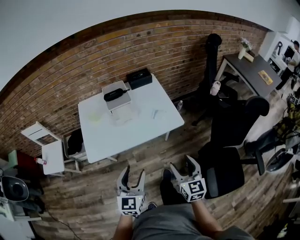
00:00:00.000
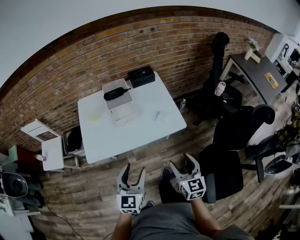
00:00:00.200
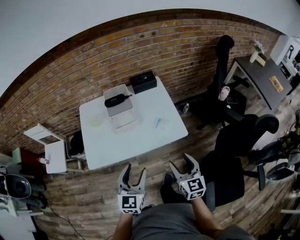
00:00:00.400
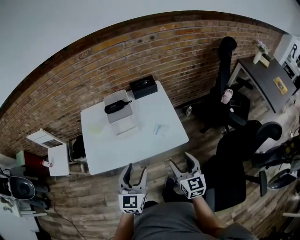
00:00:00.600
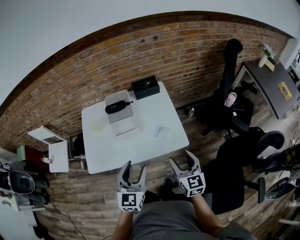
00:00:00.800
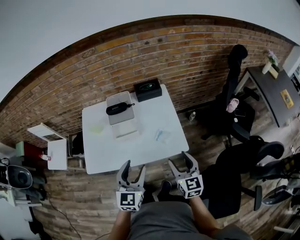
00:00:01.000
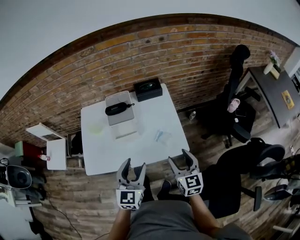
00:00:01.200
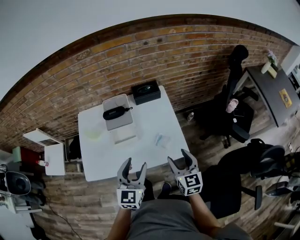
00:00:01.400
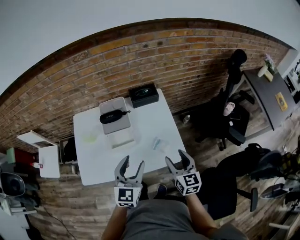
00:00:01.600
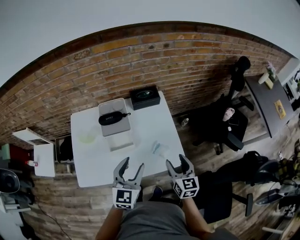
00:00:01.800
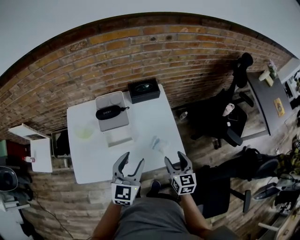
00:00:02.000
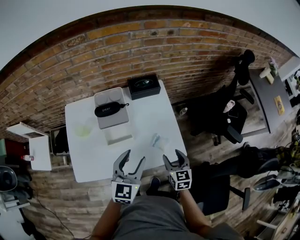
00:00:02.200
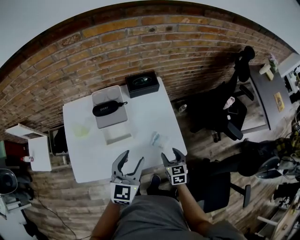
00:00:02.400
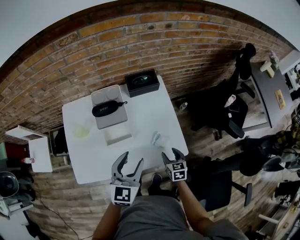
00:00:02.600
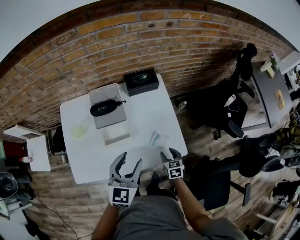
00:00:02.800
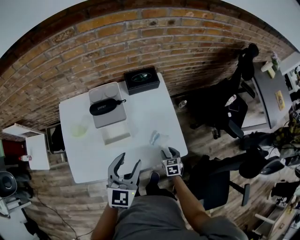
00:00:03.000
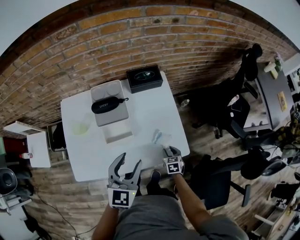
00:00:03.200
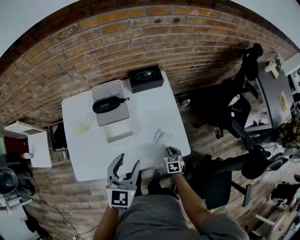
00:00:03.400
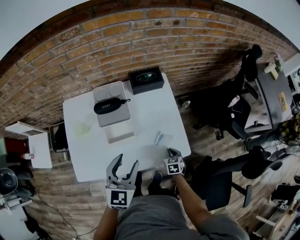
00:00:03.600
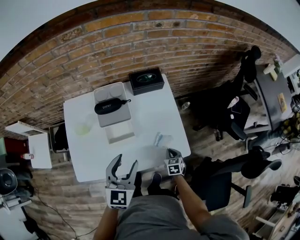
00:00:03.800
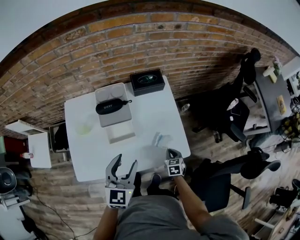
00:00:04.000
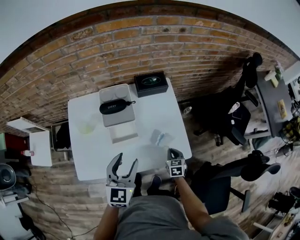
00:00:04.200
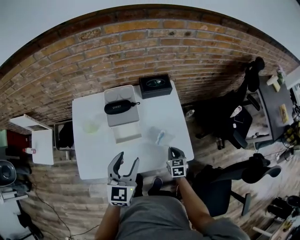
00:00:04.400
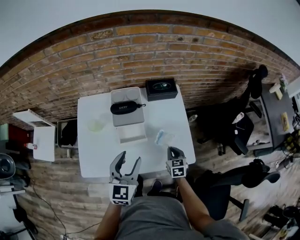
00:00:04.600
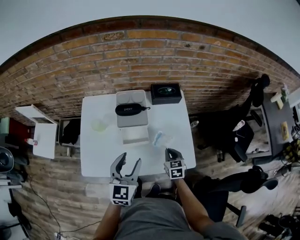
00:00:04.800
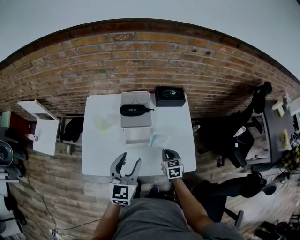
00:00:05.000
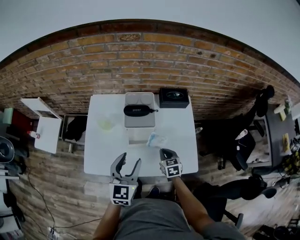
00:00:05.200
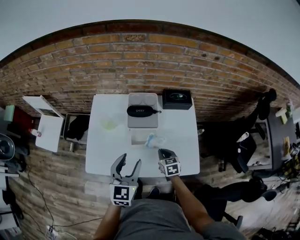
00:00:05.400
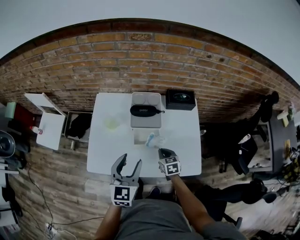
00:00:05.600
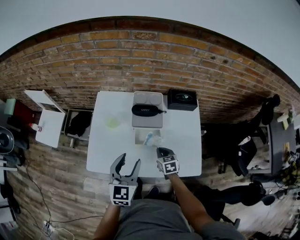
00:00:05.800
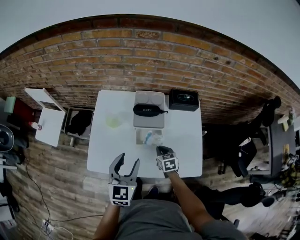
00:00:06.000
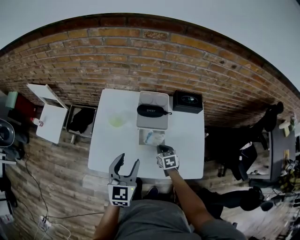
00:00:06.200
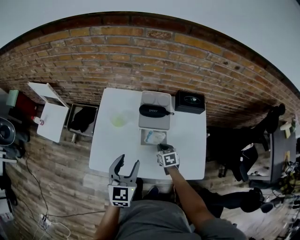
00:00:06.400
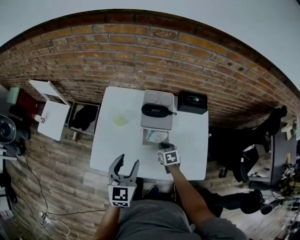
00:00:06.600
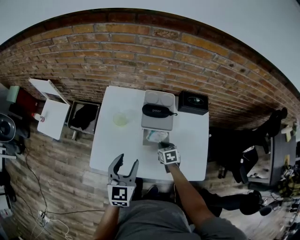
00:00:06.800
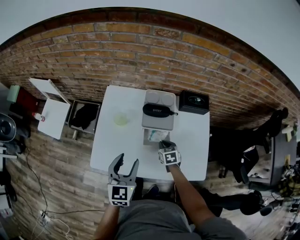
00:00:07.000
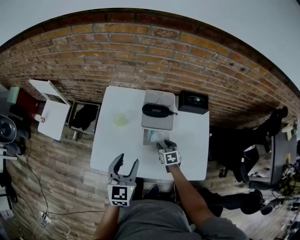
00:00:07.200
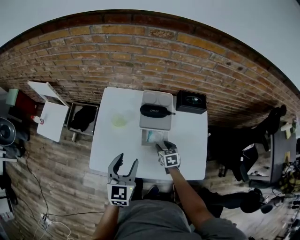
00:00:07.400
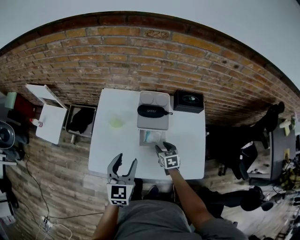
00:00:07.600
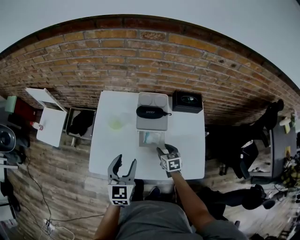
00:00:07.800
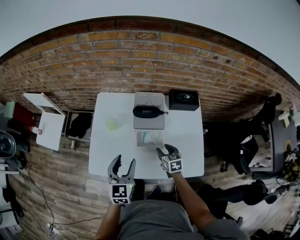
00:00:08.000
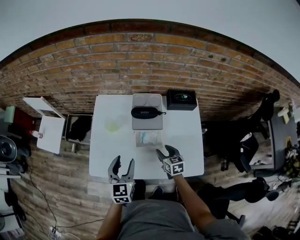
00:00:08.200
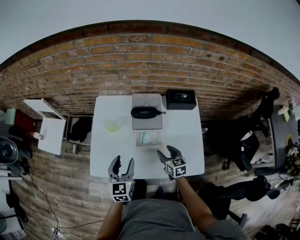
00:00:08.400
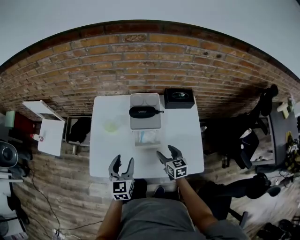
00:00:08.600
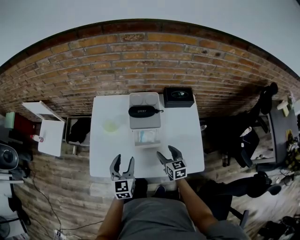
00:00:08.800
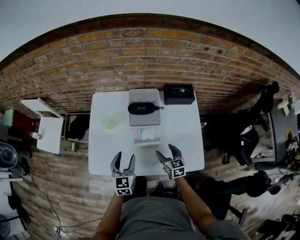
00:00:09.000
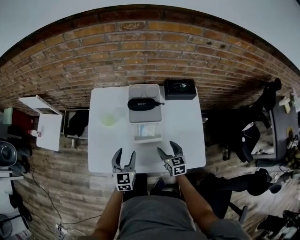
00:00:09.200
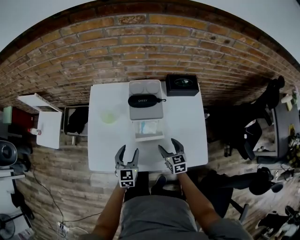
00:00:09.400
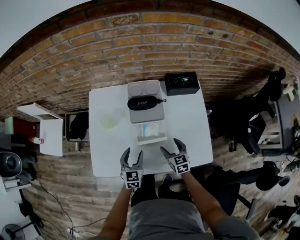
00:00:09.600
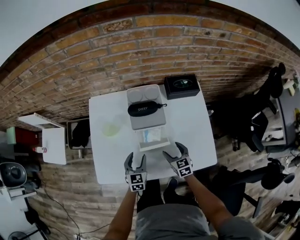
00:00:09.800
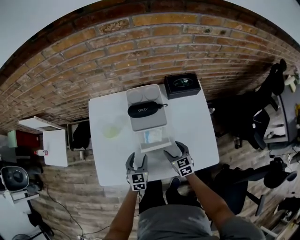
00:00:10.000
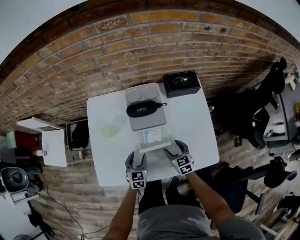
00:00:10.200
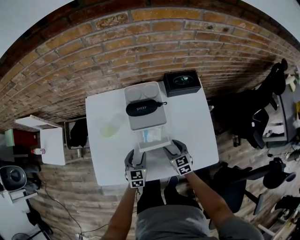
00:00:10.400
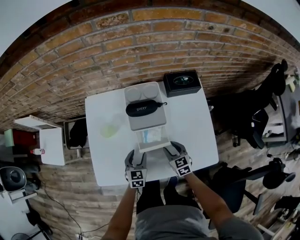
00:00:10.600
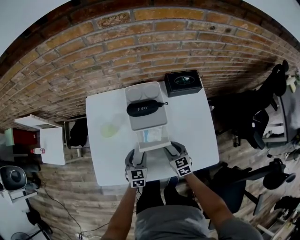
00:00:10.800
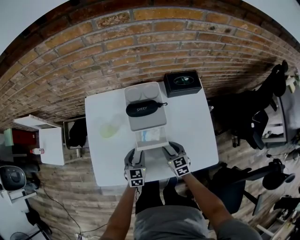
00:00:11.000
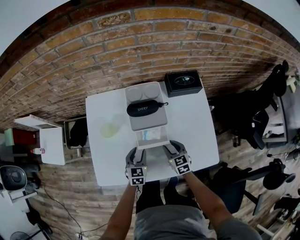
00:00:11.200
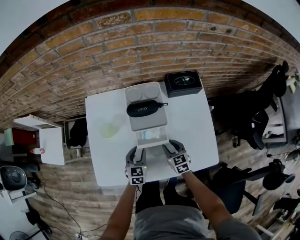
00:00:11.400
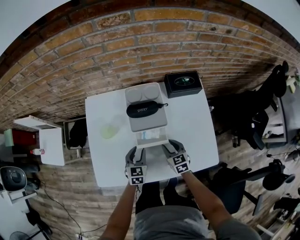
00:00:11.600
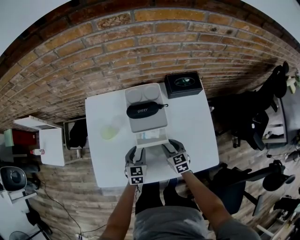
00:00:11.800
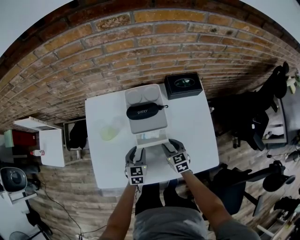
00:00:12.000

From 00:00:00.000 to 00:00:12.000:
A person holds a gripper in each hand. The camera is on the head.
From 00:00:00.000 to 00:00:01.600: The grippers both shift forward by roughly 30 cm.
From 00:00:01.600 to 00:00:03.000: The left gripper moves roughly 5 cm. Meanwhile the right gripper moves downward, approximately 25 cm, and tilts its fingers approximately 30 degrees downward.
From 00:00:03.000 to 00:00:04.400: The right gripper shifts some 5 cm upward, and closes. The left gripper moves to the left, approximately 5 cm.
From 00:00:04.400 to 00:00:06.000: The left gripper goes about 10 cm to the left, while the right gripper goes some 20 cm to the left and forward, and rotates some 20 degrees.
From 00:00:06.000 to 00:00:07.600: The right gripper opens its fingers.
From 00:00:07.600 to 00:00:09.000: The right gripper shifts about 5 cm backward, and opens up. The left gripper moves downward, about 10 cm.
From 00:00:09.000 to 00:00:10.400: The right gripper travels downward by about 5 cm. The left gripper is displaced downward by approximately 15 cm.
From 00:00:10.400 to 00:00:12.000: The left gripper closes.

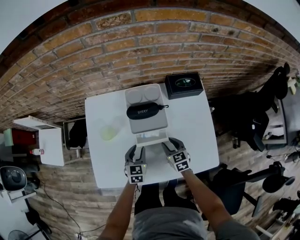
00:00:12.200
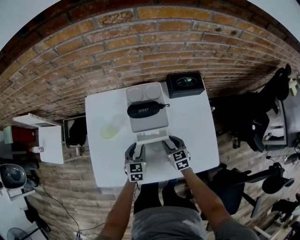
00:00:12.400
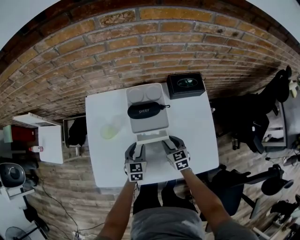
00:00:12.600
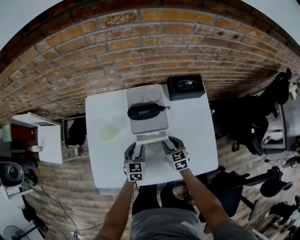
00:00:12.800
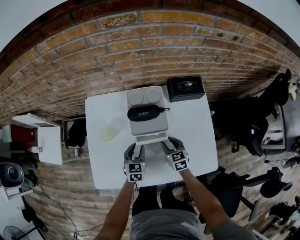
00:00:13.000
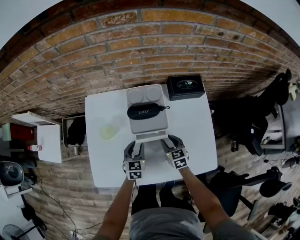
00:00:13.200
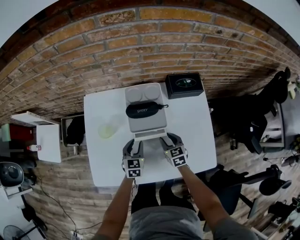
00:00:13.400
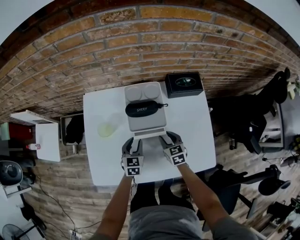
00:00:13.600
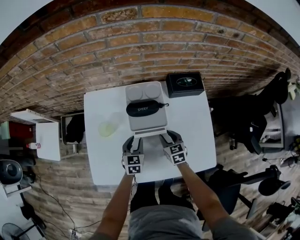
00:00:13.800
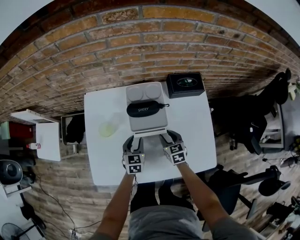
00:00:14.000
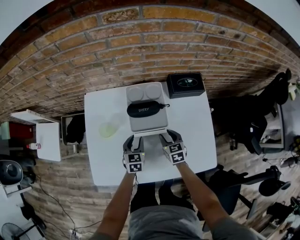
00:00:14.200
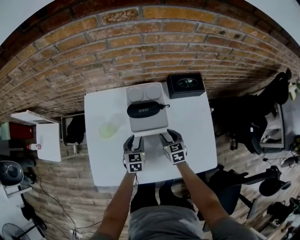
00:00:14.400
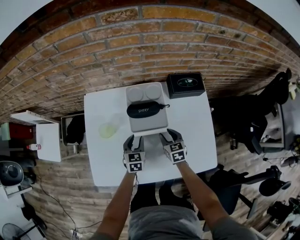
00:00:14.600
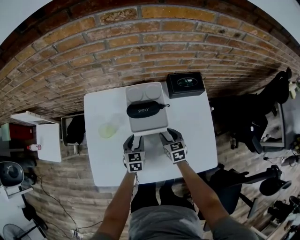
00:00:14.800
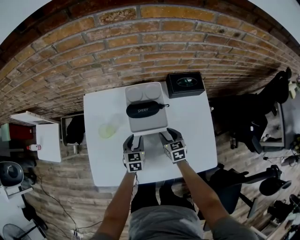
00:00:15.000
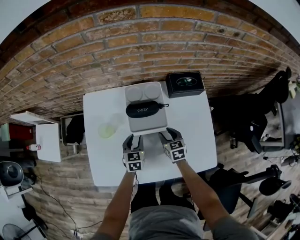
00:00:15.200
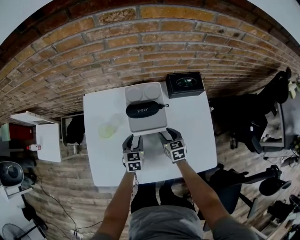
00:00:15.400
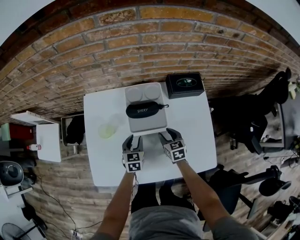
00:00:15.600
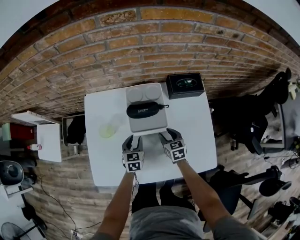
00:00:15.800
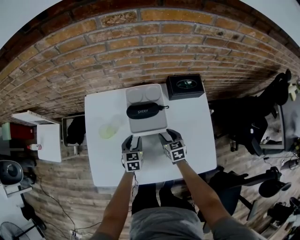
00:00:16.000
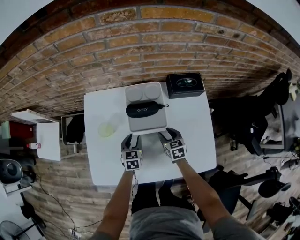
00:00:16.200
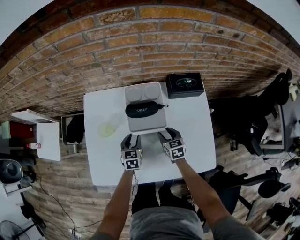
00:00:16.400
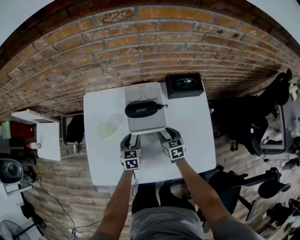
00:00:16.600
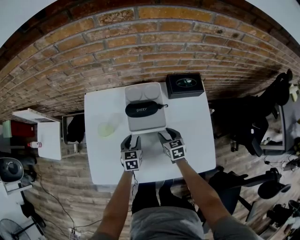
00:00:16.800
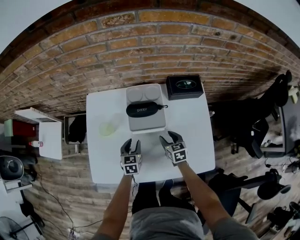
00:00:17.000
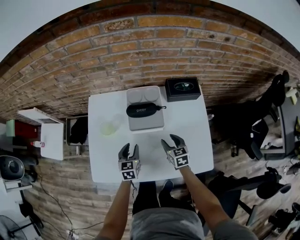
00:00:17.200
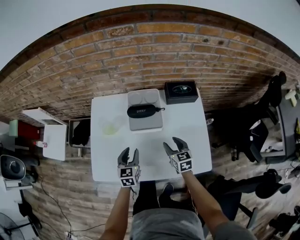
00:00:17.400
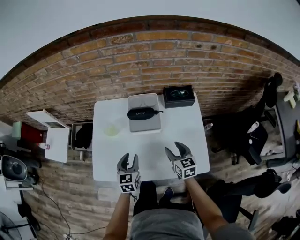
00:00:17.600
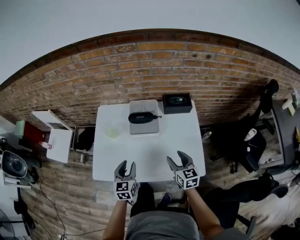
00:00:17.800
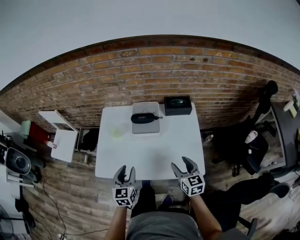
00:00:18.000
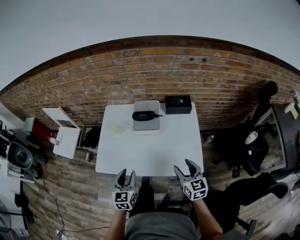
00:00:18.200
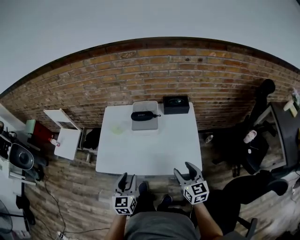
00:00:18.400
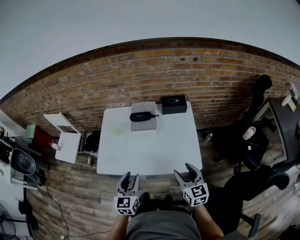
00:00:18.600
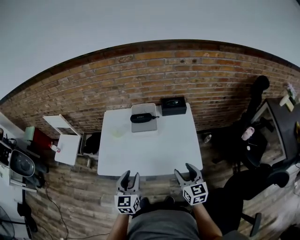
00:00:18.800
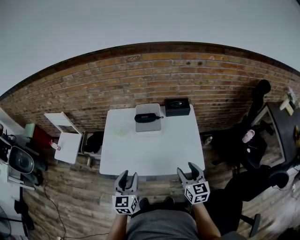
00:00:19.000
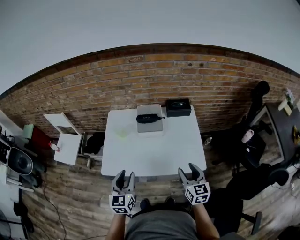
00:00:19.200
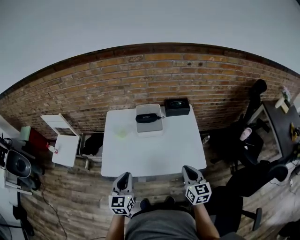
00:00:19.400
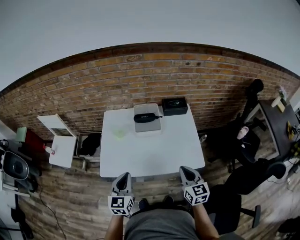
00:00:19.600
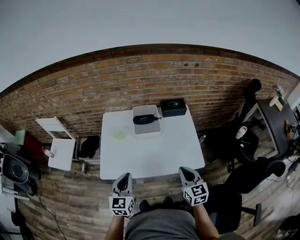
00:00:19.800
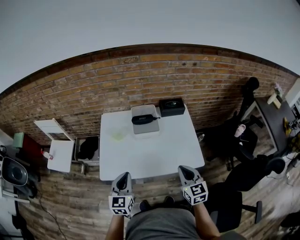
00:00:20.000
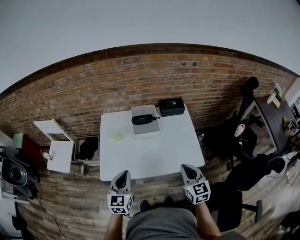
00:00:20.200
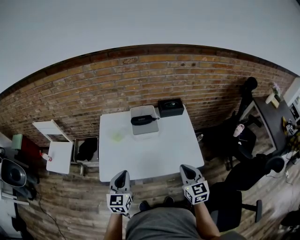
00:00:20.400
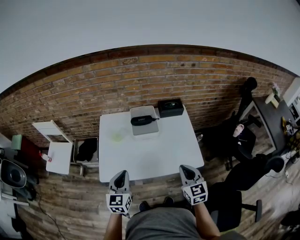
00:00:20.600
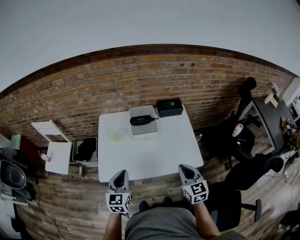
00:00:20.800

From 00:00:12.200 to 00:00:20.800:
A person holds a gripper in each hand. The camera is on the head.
From 00:00:12.200 to 00:00:16.600: The grippers make only small movements.
From 00:00:16.600 to 00:00:18.000: The left gripper heads backward and upward, covering some 30 cm, and rotates approximately 20 degrees, while the right gripper shifts approximately 30 cm upward and backward, and rotates about 20 degrees.
From 00:00:18.000 to 00:00:19.400: The grippers both shift backward and upward by some 10 cm. The left gripper closes up; the right gripper closes up.
From 00:00:19.400 to 00:00:20.800: The grippers make only small movements.

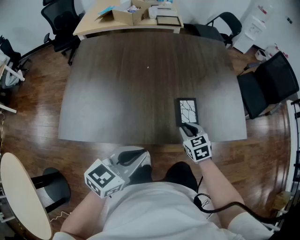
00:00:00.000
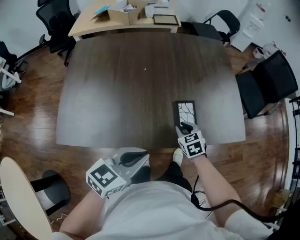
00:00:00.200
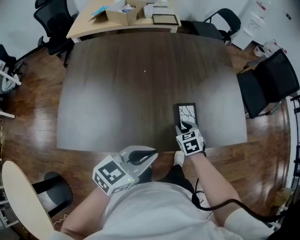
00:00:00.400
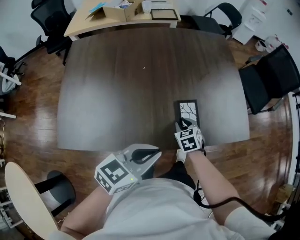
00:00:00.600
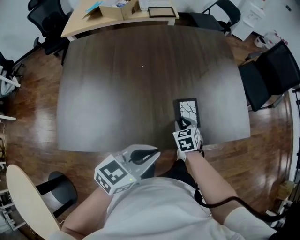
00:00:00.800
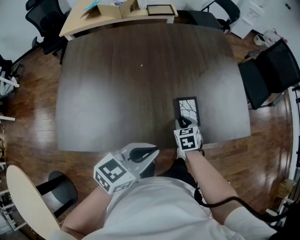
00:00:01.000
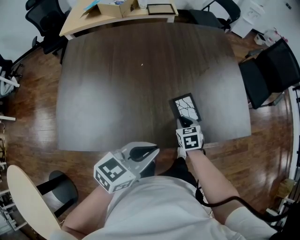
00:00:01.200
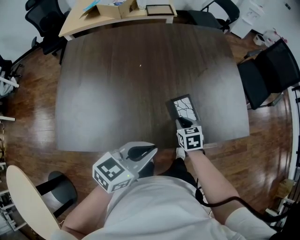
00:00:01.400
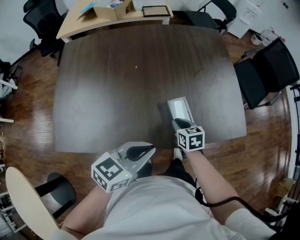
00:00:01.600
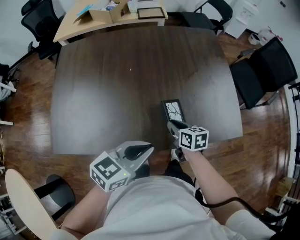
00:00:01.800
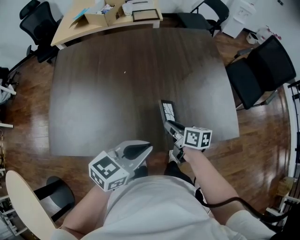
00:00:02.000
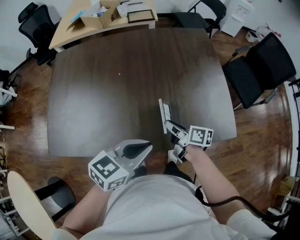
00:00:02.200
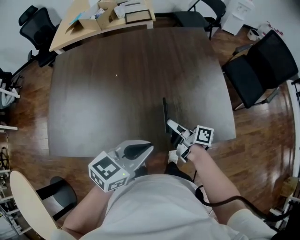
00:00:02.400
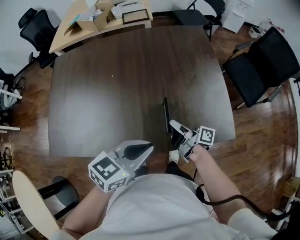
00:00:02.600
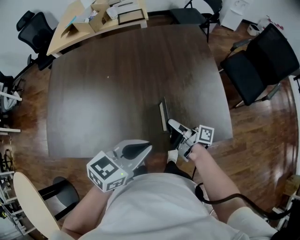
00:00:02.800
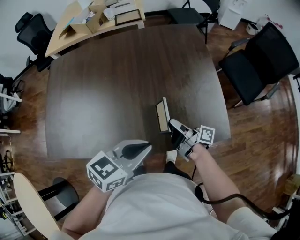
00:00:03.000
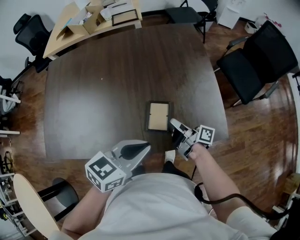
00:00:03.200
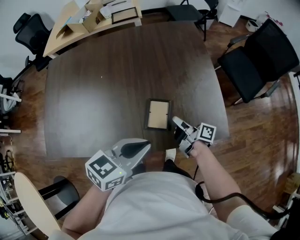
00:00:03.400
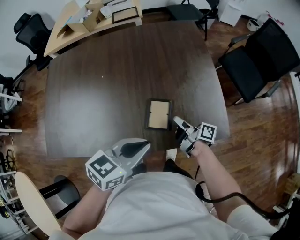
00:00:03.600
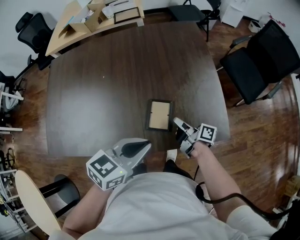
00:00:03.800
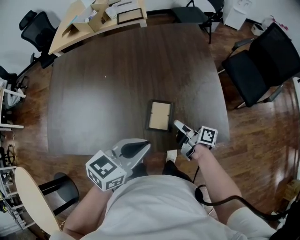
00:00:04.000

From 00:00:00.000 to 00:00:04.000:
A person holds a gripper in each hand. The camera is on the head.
From 00:00:00.000 to 00:00:01.400: The right gripper is displaced downward by approximately 5 cm, while the left gripper moves forward, some 5 cm.
From 00:00:01.400 to 00:00:02.600: The left gripper is displaced to the right by roughly 10 cm. Meanwhile the right gripper moves to the right and upward, about 10 cm, and points its fingers about 50 degrees further upward.
From 00:00:02.600 to 00:00:04.000: The right gripper shifts about 5 cm to the right.
